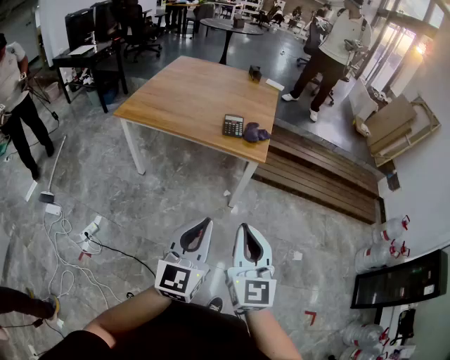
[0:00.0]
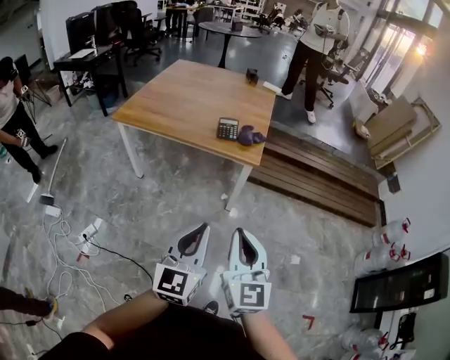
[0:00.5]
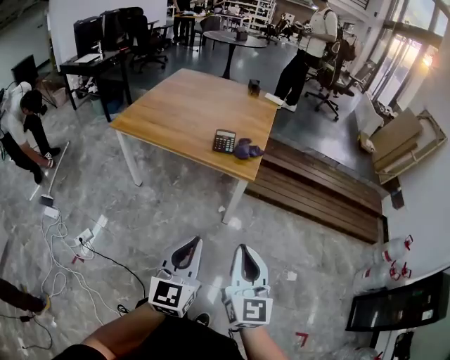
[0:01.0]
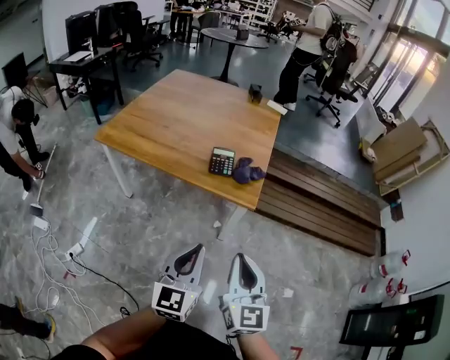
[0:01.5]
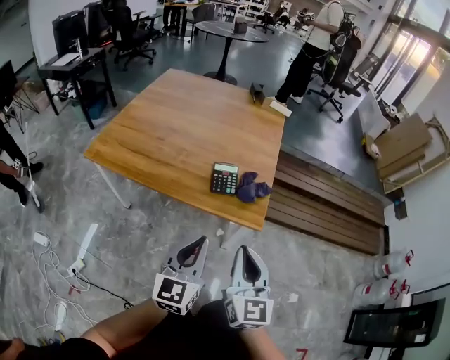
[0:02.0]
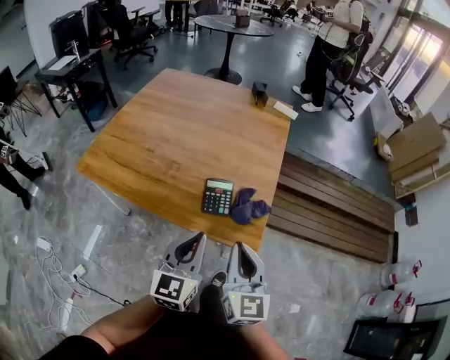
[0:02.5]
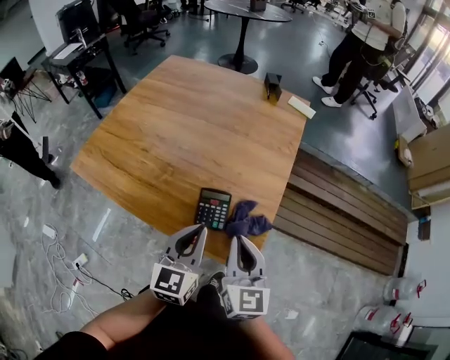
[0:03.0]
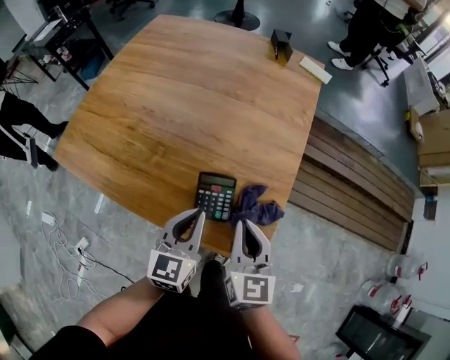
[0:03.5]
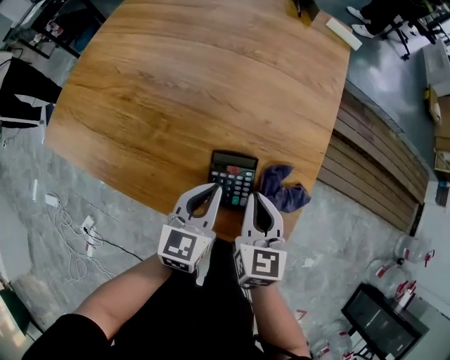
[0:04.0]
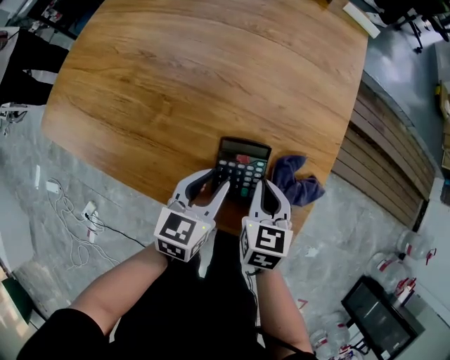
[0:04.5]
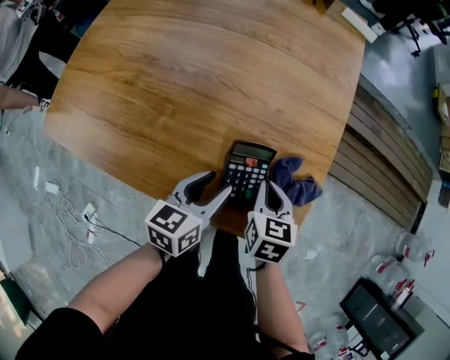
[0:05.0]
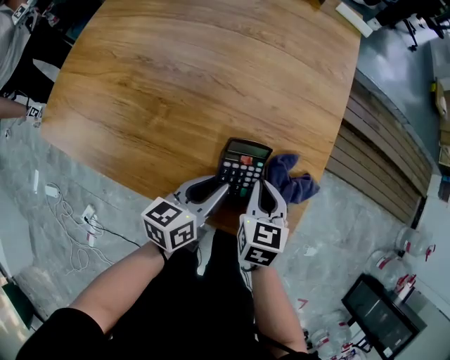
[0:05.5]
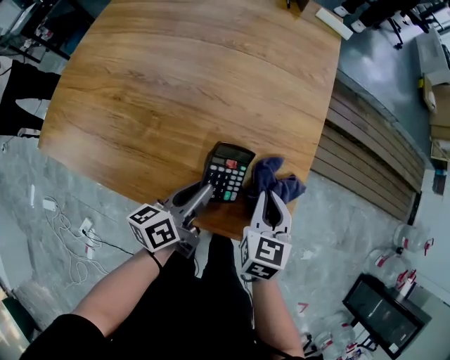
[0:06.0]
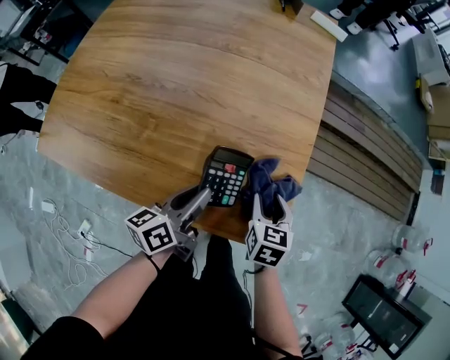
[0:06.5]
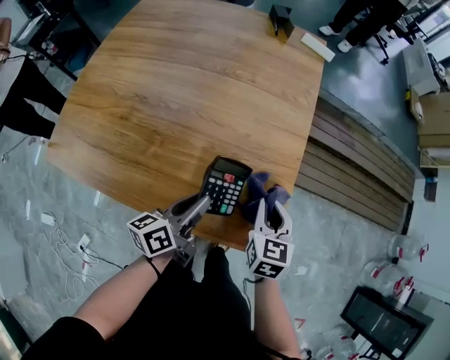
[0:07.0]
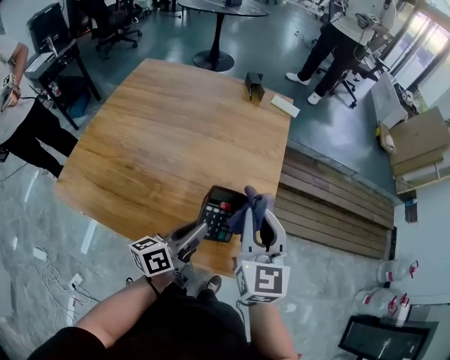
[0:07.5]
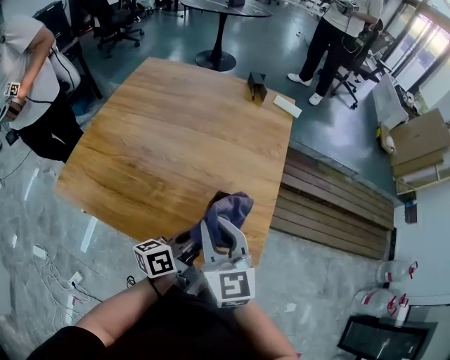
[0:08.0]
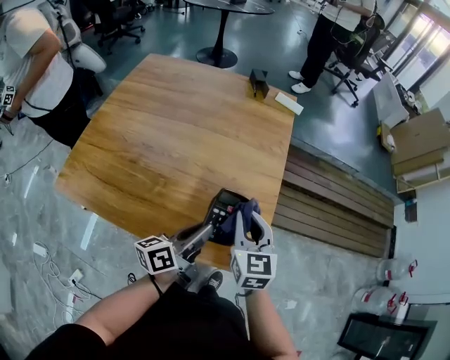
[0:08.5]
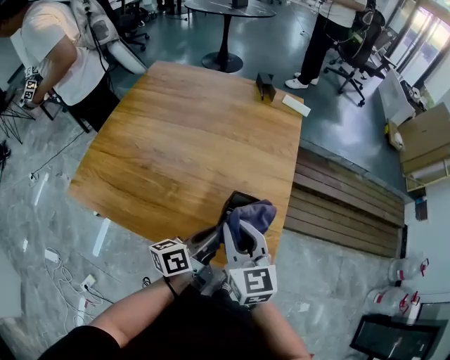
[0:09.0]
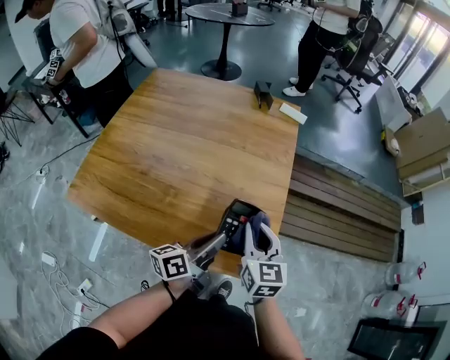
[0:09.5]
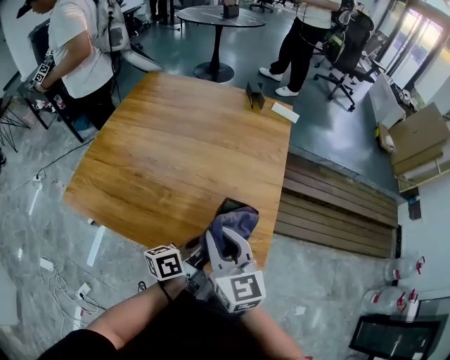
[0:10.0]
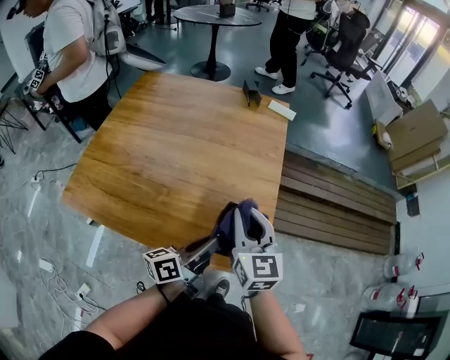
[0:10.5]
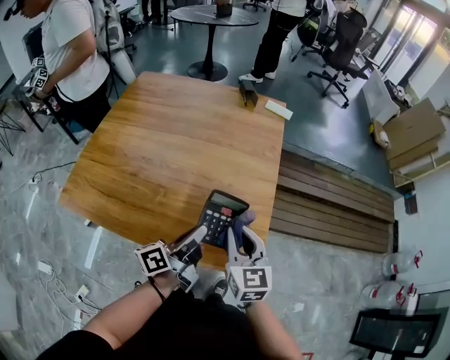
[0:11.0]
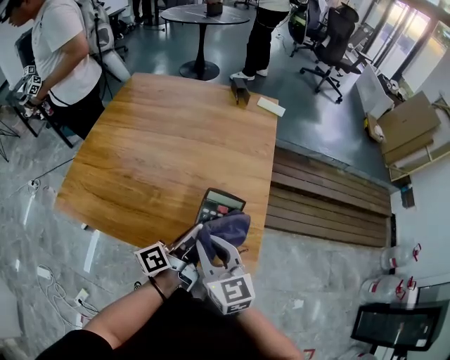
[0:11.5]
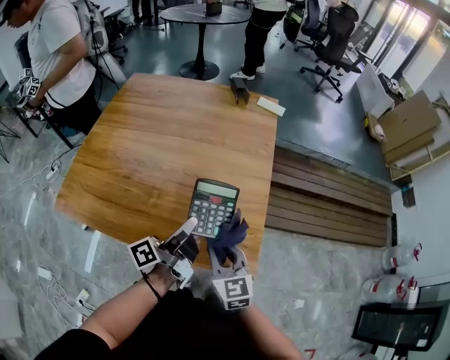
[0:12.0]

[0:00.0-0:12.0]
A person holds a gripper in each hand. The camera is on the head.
0:00.0 to 0:02.0: The two grippers go roughly 35 cm forward.
0:02.0 to 0:04.0: Both grippers move forward and downward, roughly 50 cm. The right gripper turns by roughly 20 degrees, while the left gripper swivels about 20 degrees.
0:04.0 to 0:06.0: The left gripper rotates approximately 40 degrees, and opens and closes again. The right gripper is displaced to the right by about 5 cm.
0:06.0 to 0:08.0: The left gripper heads upward, covering some 15 cm. The right gripper heads upward and to the left, covering roughly 30 cm, turns by roughly 40 degrees, and opens, then closes once more.
0:08.0 to 0:10.0: The right gripper goes left and right, roughly 10 cm each way, reversing 3 times.
0:10.0 to 0:12.0: The left gripper swivels roughly 20 degrees. Meanwhile the right gripper shifts roughly 10 cm downward.

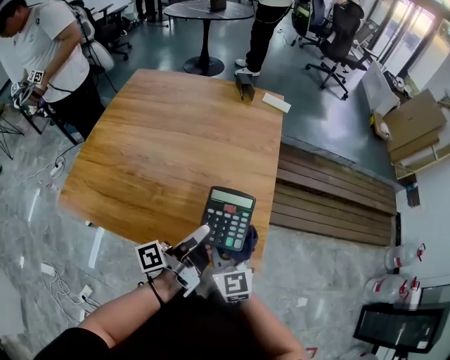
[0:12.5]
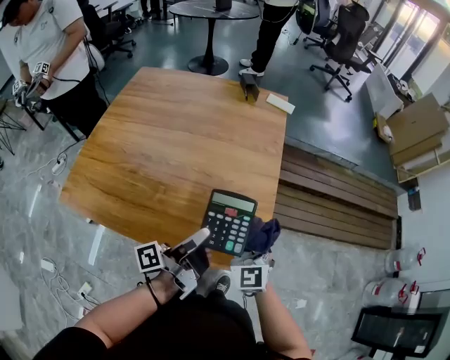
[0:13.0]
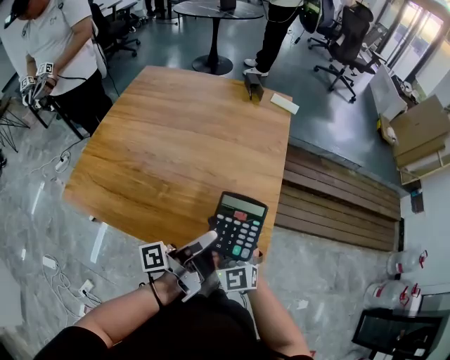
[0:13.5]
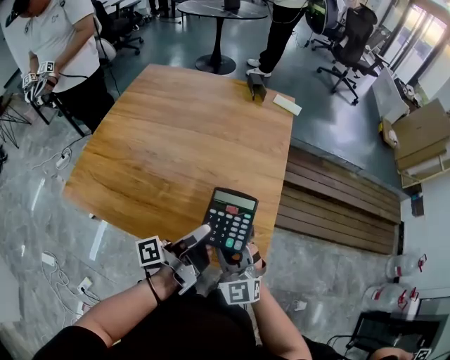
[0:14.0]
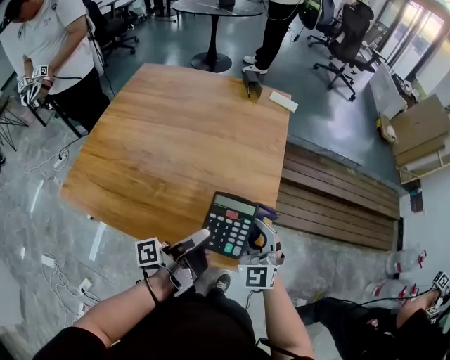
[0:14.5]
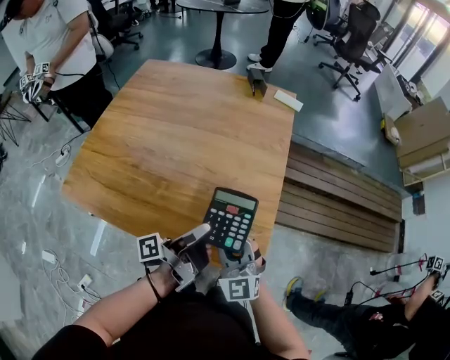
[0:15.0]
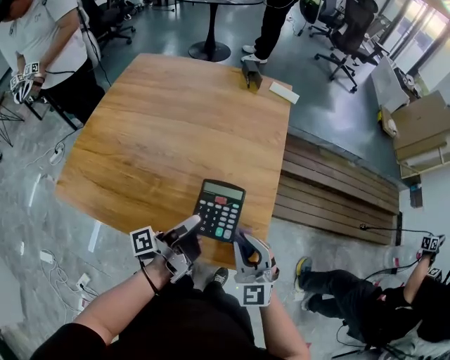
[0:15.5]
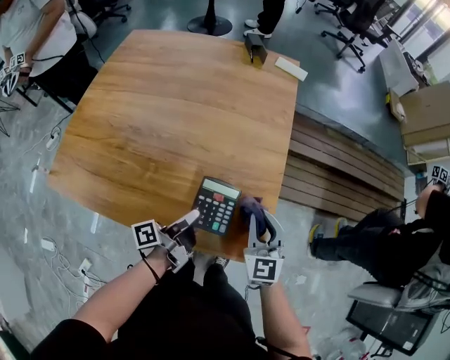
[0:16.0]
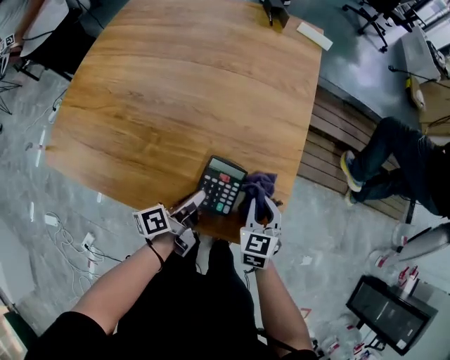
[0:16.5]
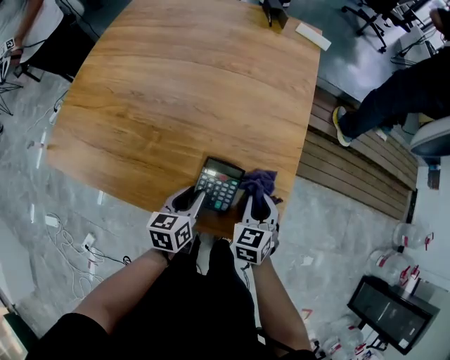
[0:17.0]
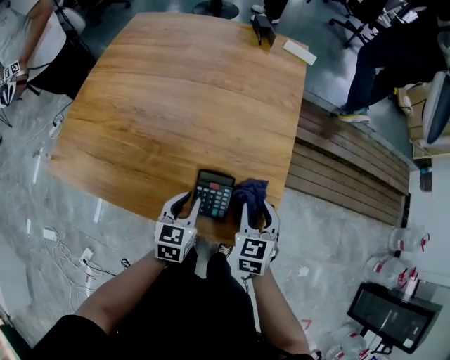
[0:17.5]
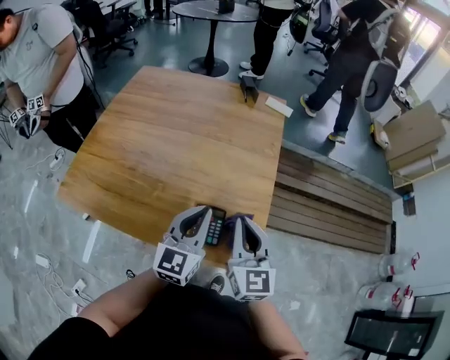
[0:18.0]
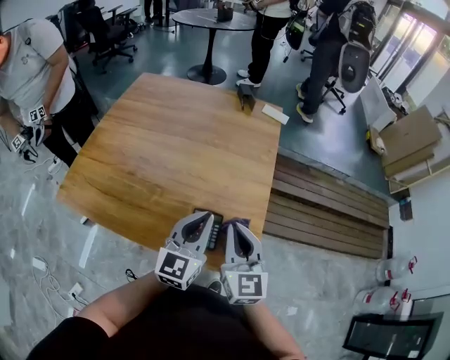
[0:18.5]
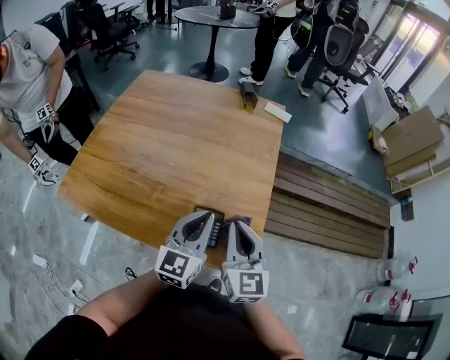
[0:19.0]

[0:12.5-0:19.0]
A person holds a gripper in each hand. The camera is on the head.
0:12.5 to 0:14.5: The right gripper goes left and right, approximately 10 cm each way, reversing 2 times, and changes its angle by about 30 degrees.
0:14.5 to 0:17.0: Both grippers travel together downward, about 20 cm. The right gripper angles its fingers downward, by roughly 30 degrees. The left gripper tilts its fingers roughly 50 degrees downward.
0:17.0 to 0:19.0: Both grippers move upward, some 30 cm. The left gripper tilts its fingers approximately 30 degrees upward, and closes up. Meanwhile the right gripper tilts its fingers about 40 degrees upward.

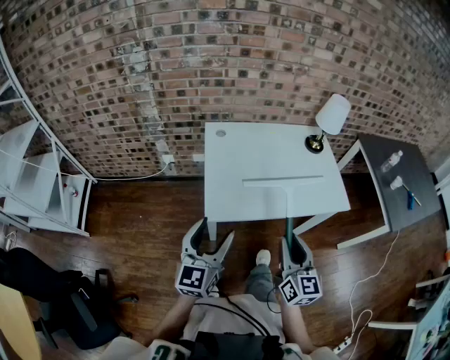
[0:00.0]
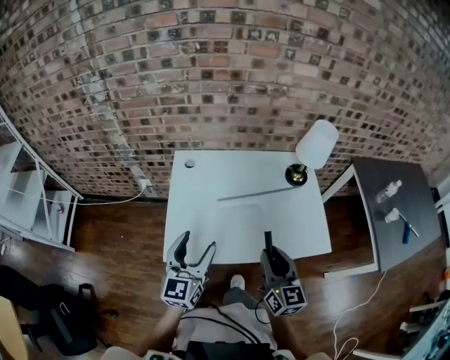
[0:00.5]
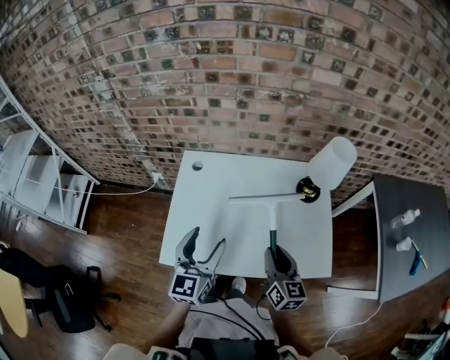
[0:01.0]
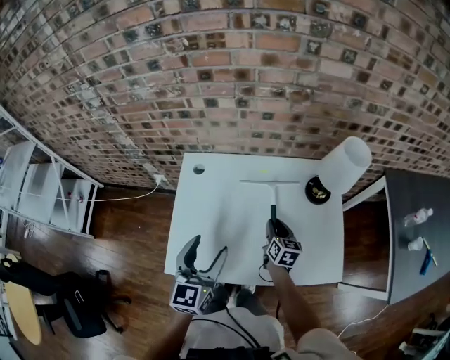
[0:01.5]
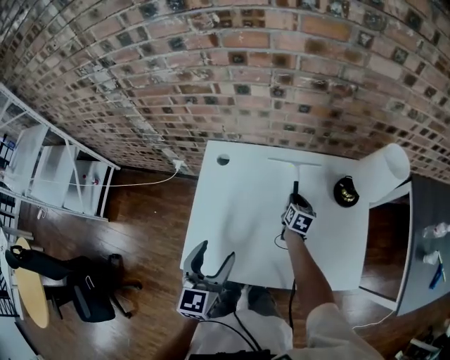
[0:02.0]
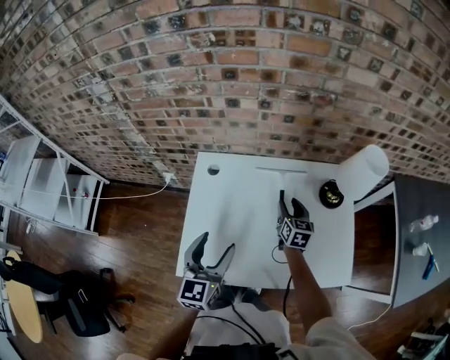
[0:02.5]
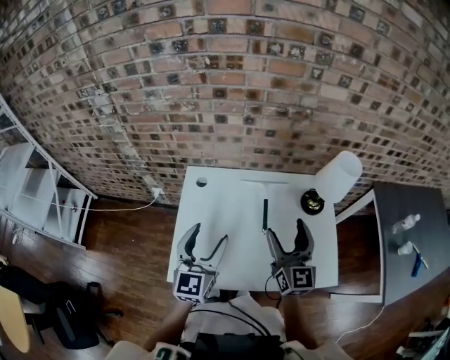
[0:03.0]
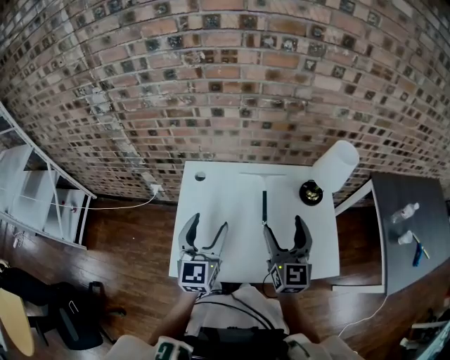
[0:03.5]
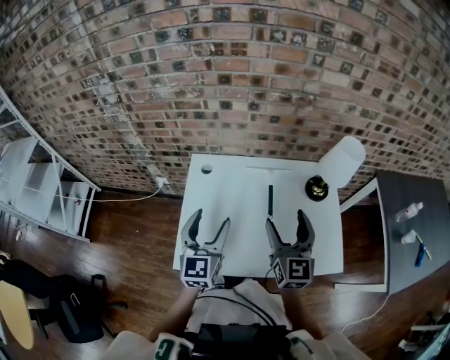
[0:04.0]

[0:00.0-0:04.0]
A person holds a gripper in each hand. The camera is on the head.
0:00.0 to 0:02.0: The left gripper heads forward and to the right, covering some 30 cm, and swivels roughly 20 degrees. Meanwhile the right gripper travels forward and downward by roughly 60 cm, and tips its fingers downward by about 40 degrees.
0:02.0 to 0:04.0: The left gripper is displaced upward by roughly 5 cm. Meanwhile the right gripper goes approximately 40 cm upward and backward, angles its fingers upward, by approximately 40 degrees, and opens its fingers.

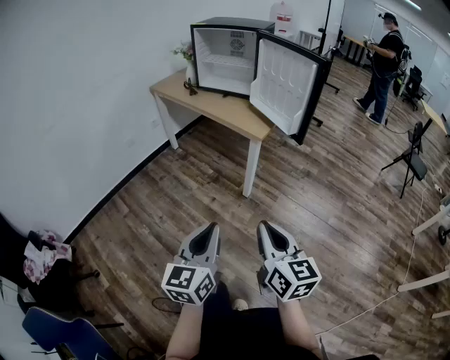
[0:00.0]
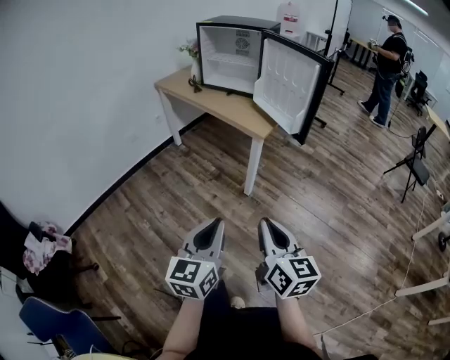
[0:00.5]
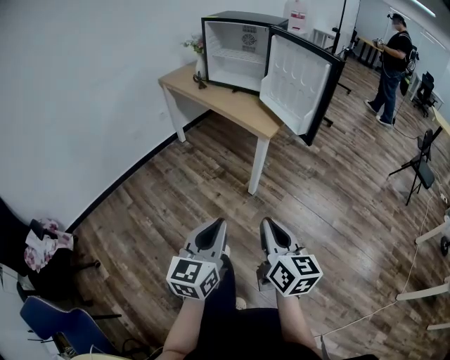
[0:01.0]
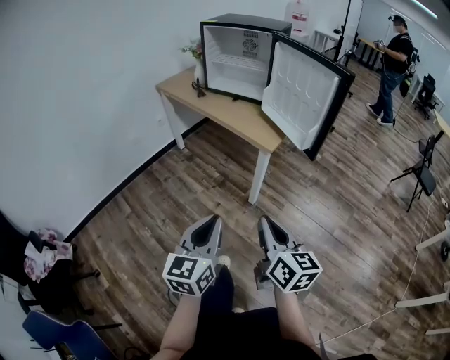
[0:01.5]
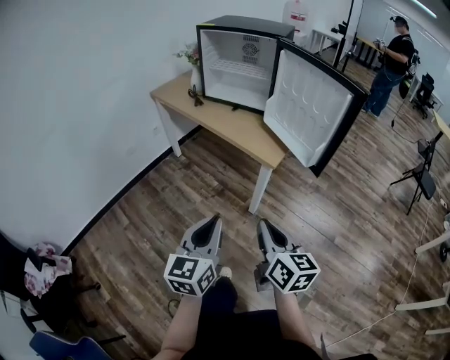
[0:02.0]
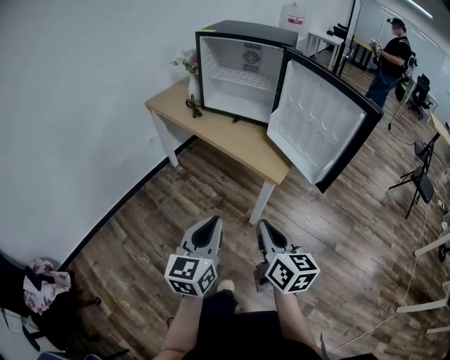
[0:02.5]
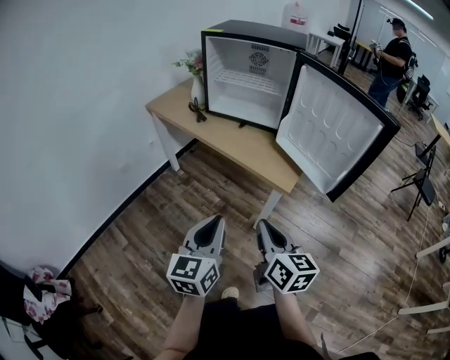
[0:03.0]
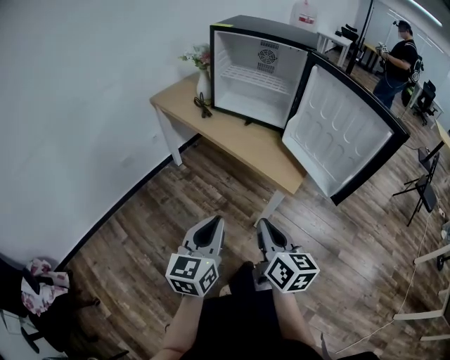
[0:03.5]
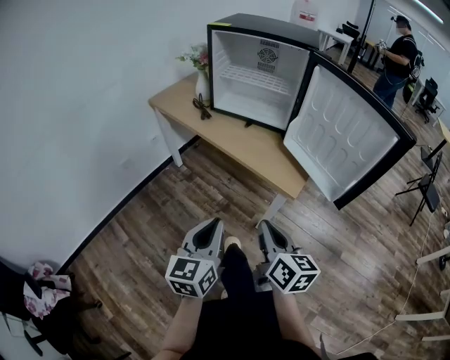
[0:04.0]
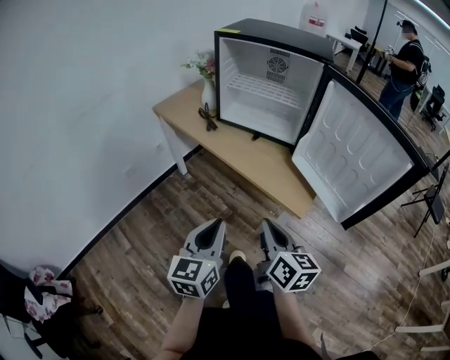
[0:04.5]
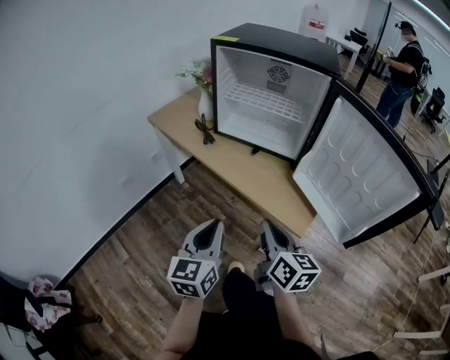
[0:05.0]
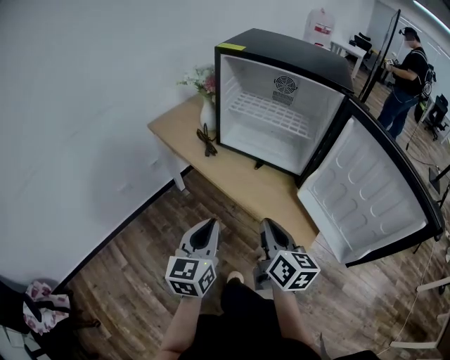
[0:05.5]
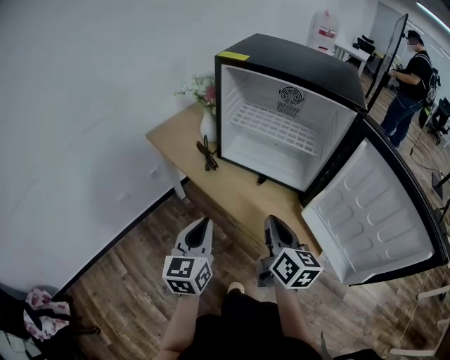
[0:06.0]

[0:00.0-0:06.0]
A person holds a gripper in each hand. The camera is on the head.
0:00.0 to 0:02.0: The two grippers go roughly 20 cm forward.
0:02.0 to 0:04.0: Both grippers travel together forward and to the left, about 20 cm.
0:04.0 to 0:06.0: The two grippers go some 30 cm forward.
